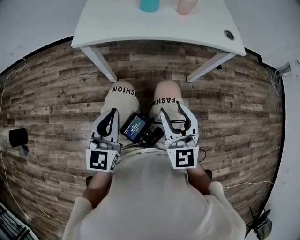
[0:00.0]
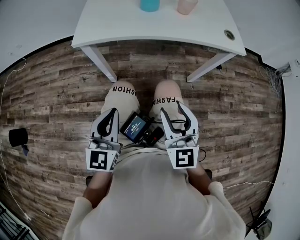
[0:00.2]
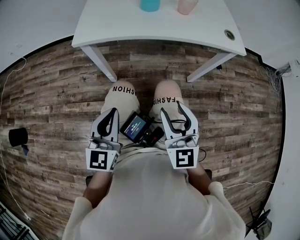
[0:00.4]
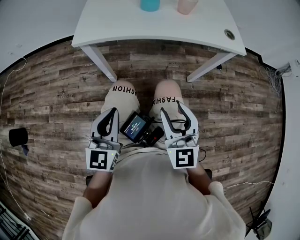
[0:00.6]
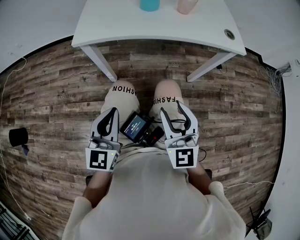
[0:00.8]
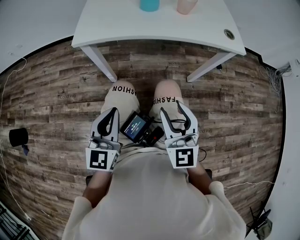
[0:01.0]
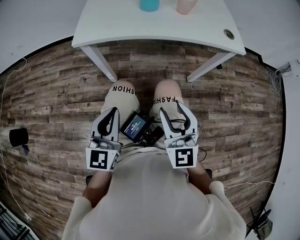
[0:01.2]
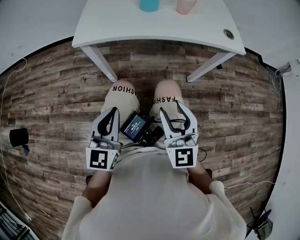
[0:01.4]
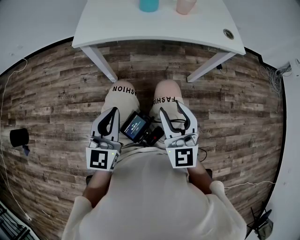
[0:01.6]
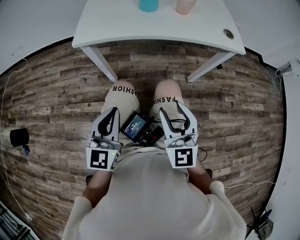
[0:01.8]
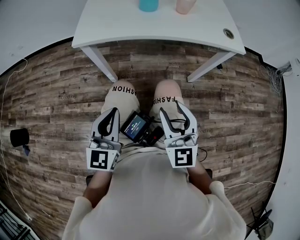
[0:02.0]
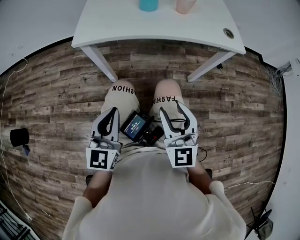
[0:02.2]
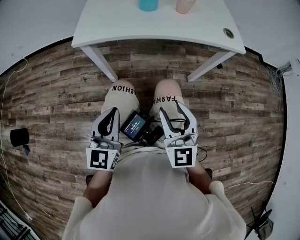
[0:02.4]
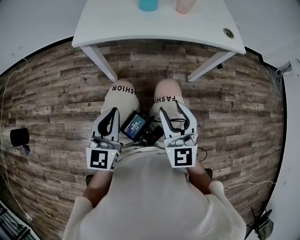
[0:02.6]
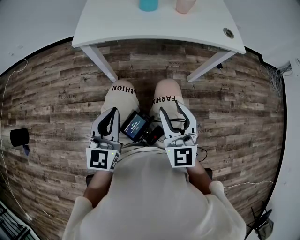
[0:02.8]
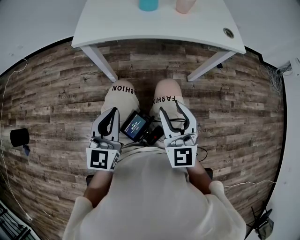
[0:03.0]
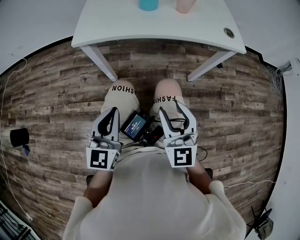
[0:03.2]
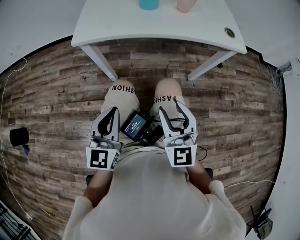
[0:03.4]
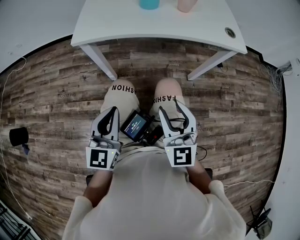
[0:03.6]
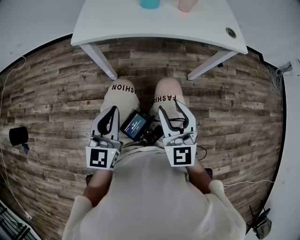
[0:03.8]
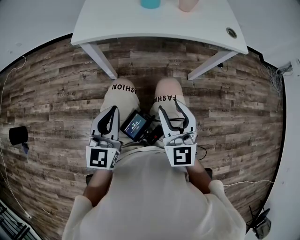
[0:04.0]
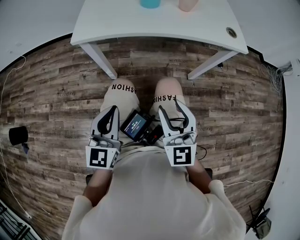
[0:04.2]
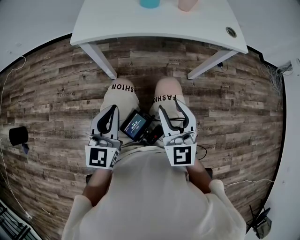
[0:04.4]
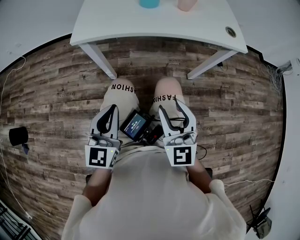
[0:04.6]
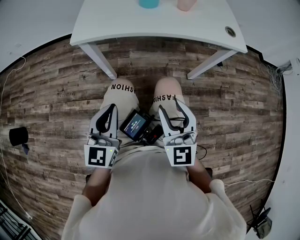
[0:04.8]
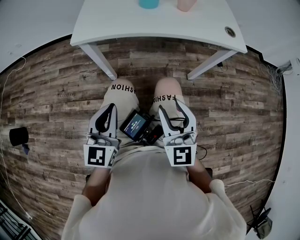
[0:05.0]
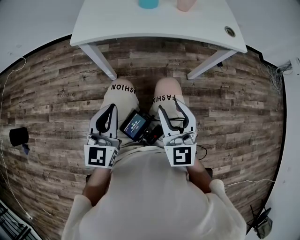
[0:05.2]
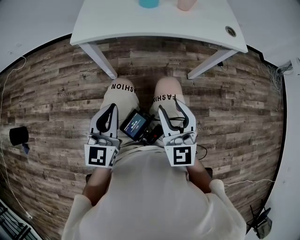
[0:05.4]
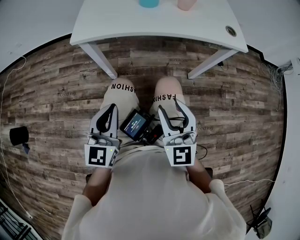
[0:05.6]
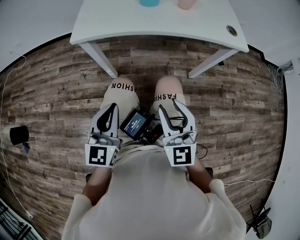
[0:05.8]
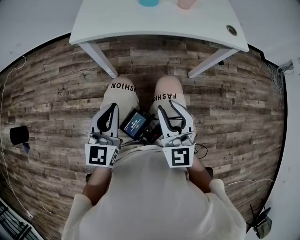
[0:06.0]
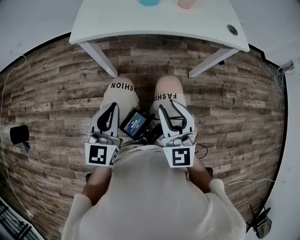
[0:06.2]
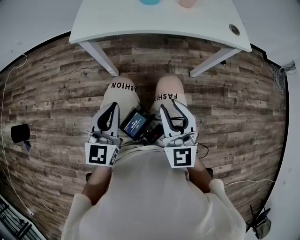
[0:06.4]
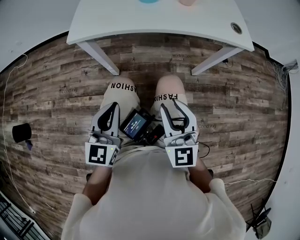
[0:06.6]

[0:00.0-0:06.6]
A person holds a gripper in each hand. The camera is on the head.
0.0 to 3.2 s: Both grippers stay about where they are.
3.2 to 5.0 s: Both grippers stay put.
5.0 to 6.6 s: There are only small adjustments of the grippers.

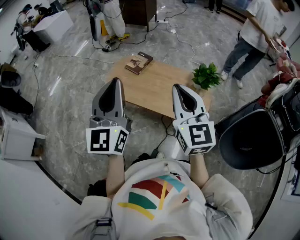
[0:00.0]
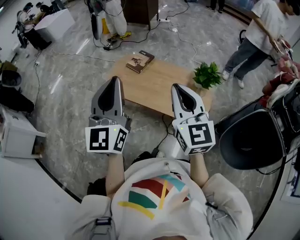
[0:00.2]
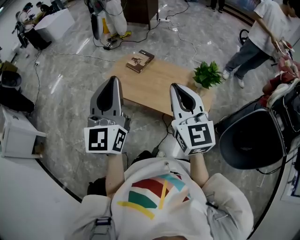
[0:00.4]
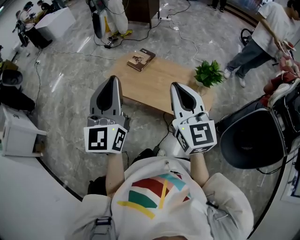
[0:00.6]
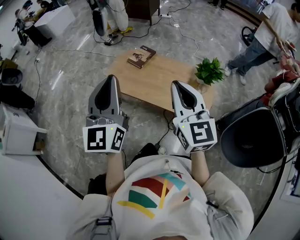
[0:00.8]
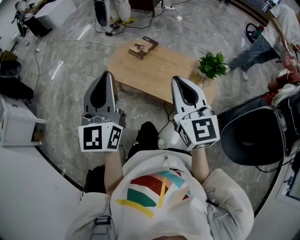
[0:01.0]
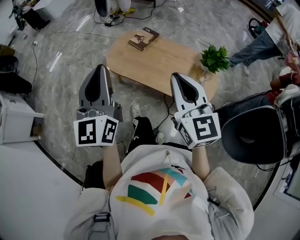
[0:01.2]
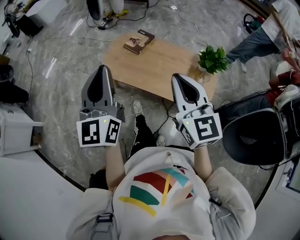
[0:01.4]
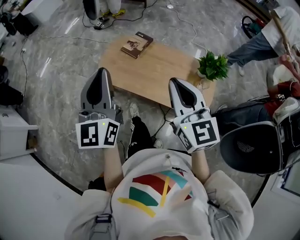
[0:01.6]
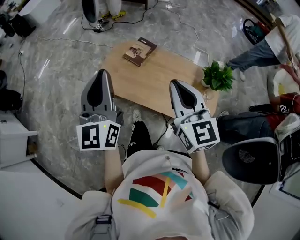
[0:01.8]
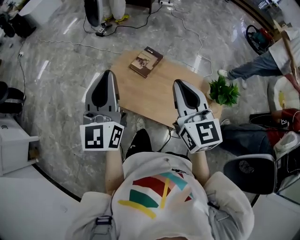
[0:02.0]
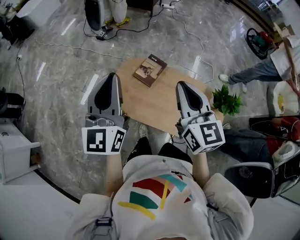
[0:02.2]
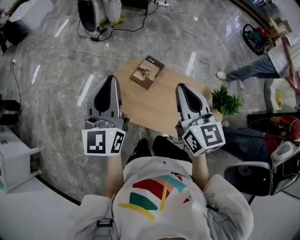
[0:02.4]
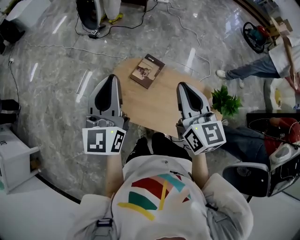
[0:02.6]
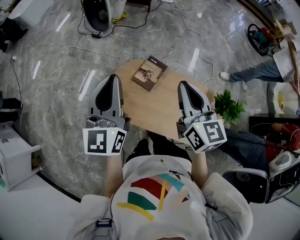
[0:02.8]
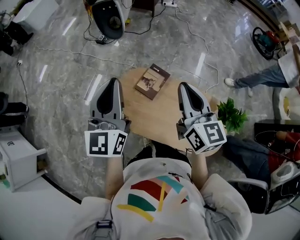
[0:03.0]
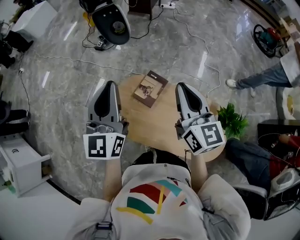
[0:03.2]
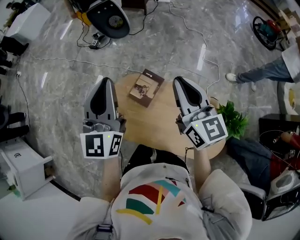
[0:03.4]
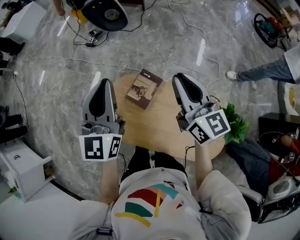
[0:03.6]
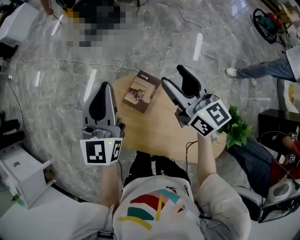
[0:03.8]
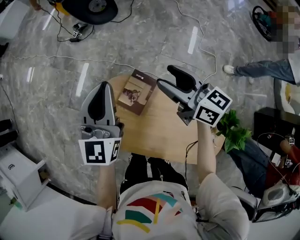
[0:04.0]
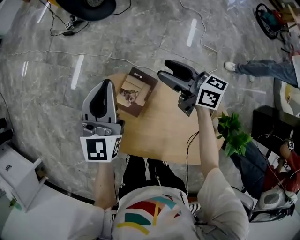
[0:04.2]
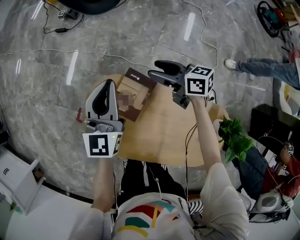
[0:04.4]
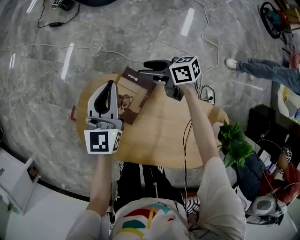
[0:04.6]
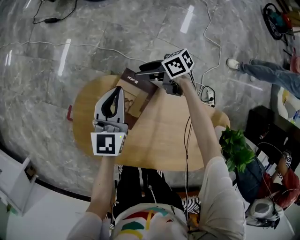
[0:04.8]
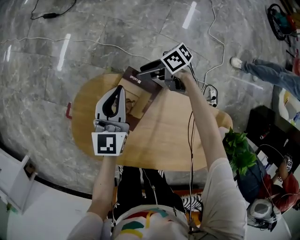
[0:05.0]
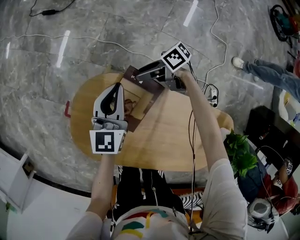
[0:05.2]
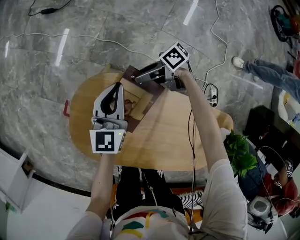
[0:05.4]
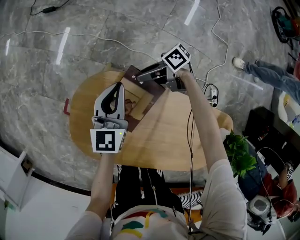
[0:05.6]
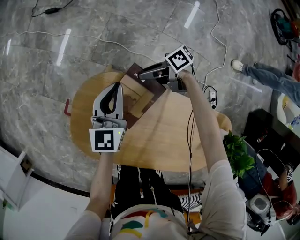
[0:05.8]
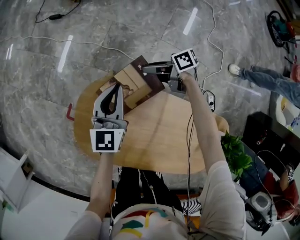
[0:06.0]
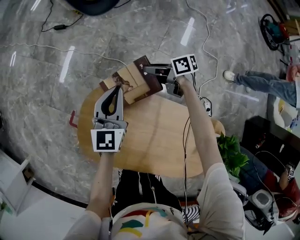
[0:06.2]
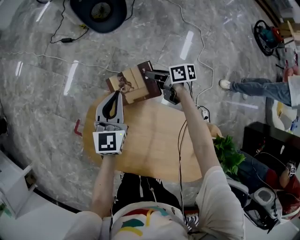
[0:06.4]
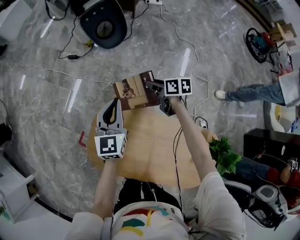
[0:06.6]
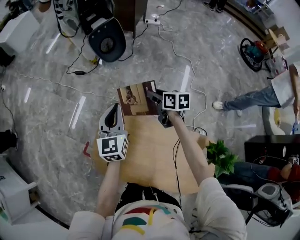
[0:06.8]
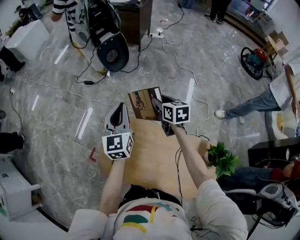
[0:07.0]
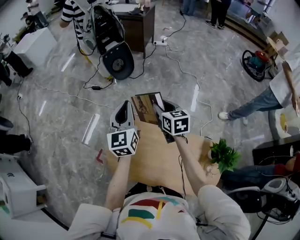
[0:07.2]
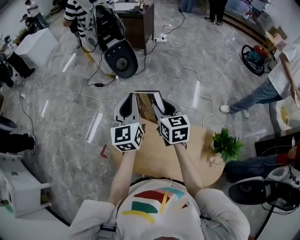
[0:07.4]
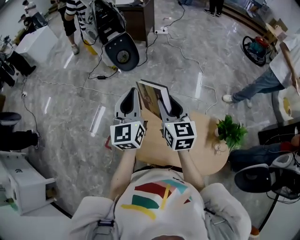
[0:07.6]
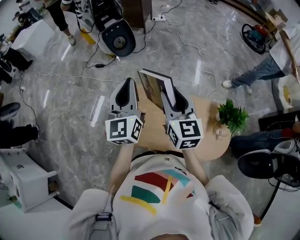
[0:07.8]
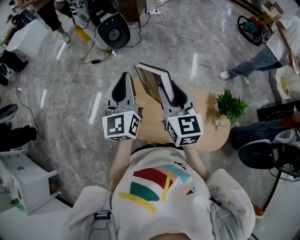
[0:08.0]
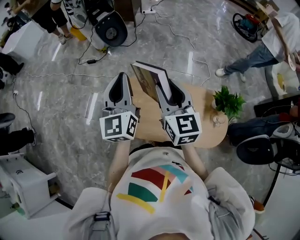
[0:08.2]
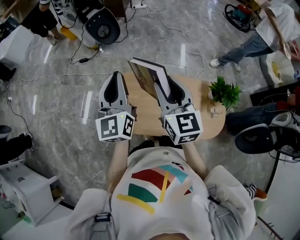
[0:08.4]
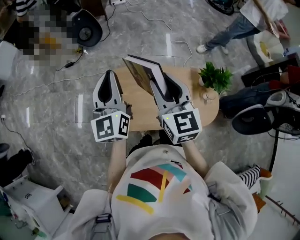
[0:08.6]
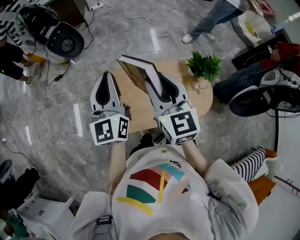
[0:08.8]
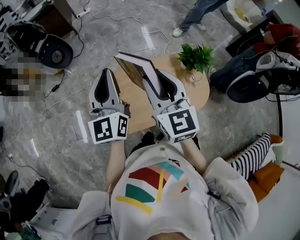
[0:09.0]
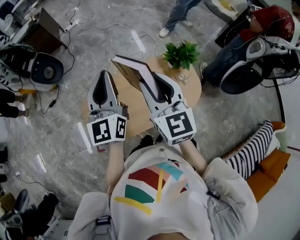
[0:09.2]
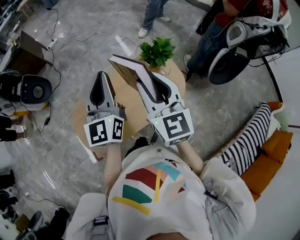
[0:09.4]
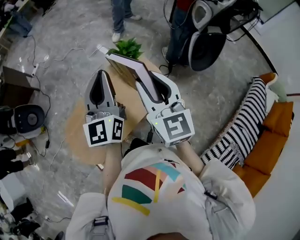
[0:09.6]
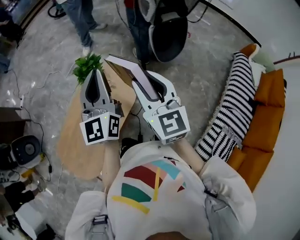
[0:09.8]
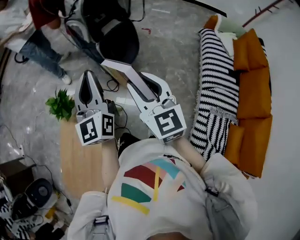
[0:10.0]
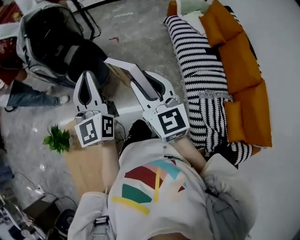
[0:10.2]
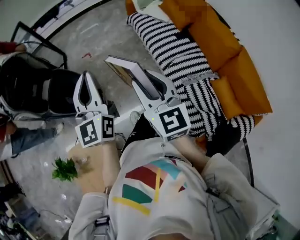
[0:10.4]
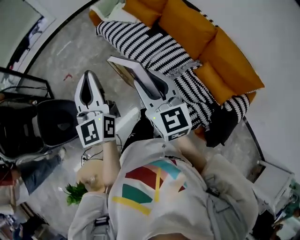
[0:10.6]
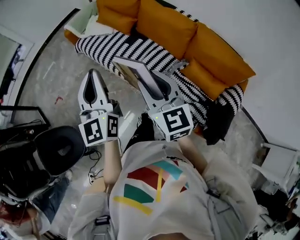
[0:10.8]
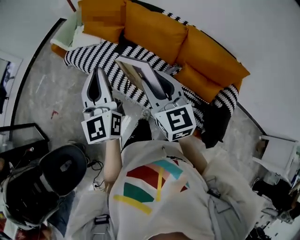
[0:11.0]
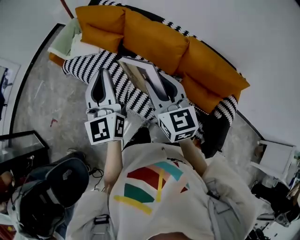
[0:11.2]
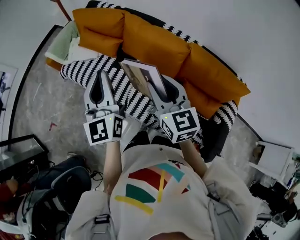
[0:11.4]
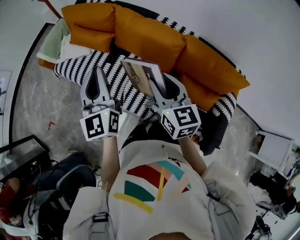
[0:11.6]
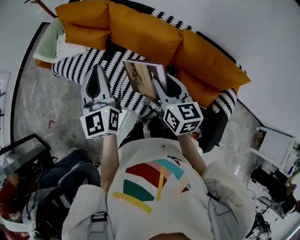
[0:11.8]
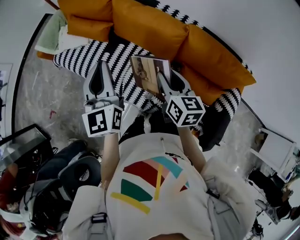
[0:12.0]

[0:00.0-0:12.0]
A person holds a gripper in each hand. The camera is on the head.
0.0 to 1.6 s: The left gripper travels forward, downward and to the left by approximately 15 cm; the right gripper heads forward and downward, covering approximately 10 cm.
1.6 to 3.0 s: The grippers both shift forward by about 35 cm.
3.0 to 4.4 s: The right gripper travels downward and forward by roughly 50 cm, swivels roughly 50 degrees, and opens, while the left gripper goes about 40 cm downward, forward and to the right.
4.4 to 6.0 s: Both grippers travel together downward, some 20 cm. The right gripper turns by approximately 40 degrees, and closes its fingers.
6.0 to 7.6 s: Both grippers move upward, approximately 50 cm. The left gripper turns by some 20 degrees, while the right gripper changes its angle by approximately 90 degrees.
7.6 to 9.0 s: The right gripper moves backward and to the right, about 15 cm, and changes its angle by approximately 20 degrees, while the left gripper goes approximately 15 cm to the right and backward, and turns by some 30 degrees.
9.0 to 10.4 s: Both grippers are carried some 90 cm. The left gripper changes its angle by approximately 90 degrees. The right gripper rotates about 100 degrees.
10.4 to 12.0 s: The two grippers travel together, roughly 50 cm. The right gripper changes its angle by some 60 degrees, while the left gripper changes its angle by approximately 50 degrees.

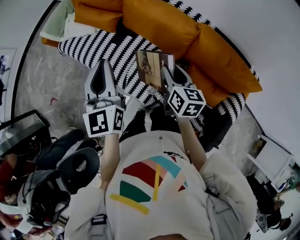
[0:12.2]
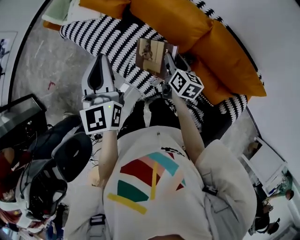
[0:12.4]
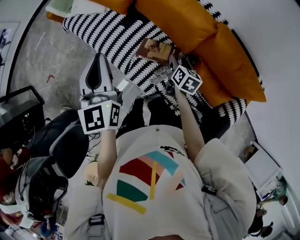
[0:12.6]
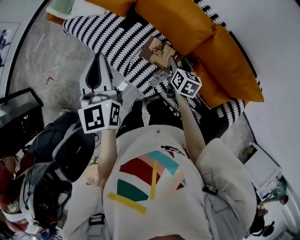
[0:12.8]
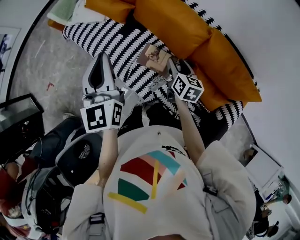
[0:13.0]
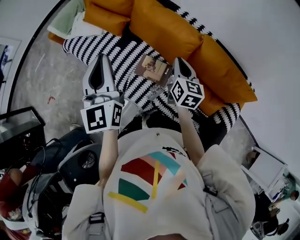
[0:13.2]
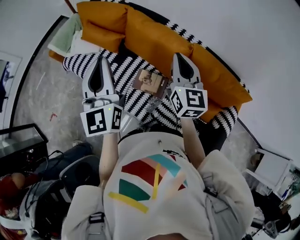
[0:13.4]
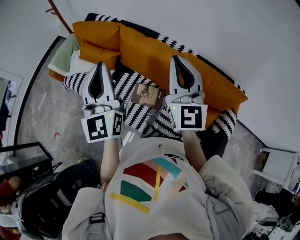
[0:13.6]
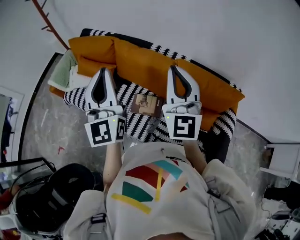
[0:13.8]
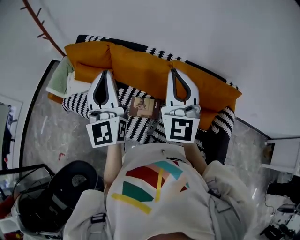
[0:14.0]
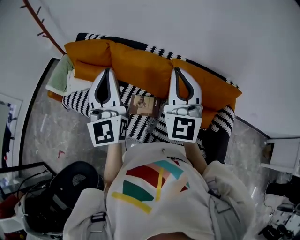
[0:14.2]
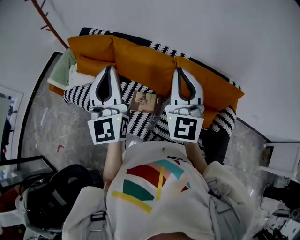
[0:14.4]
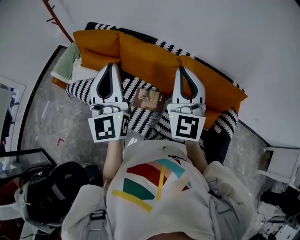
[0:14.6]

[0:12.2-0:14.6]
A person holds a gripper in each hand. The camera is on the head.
12.2 to 13.4 s: The left gripper travels upward by approximately 10 cm. The right gripper goes some 15 cm upward, changes its angle by about 30 degrees, and closes.
13.4 to 14.6 s: The right gripper heads upward and backward, covering roughly 15 cm, and swivels some 30 degrees, while the left gripper heads upward and to the right, covering approximately 10 cm.

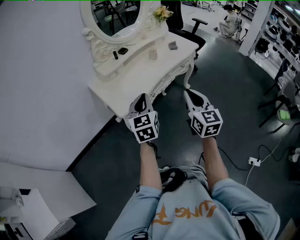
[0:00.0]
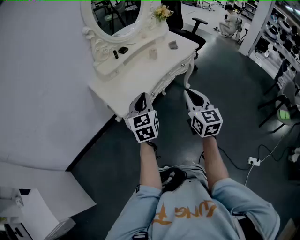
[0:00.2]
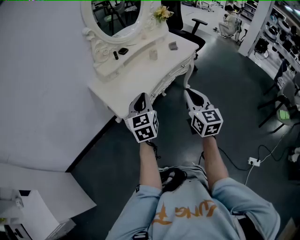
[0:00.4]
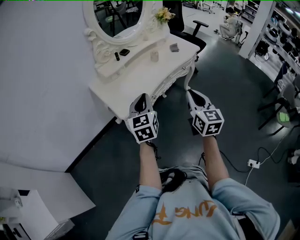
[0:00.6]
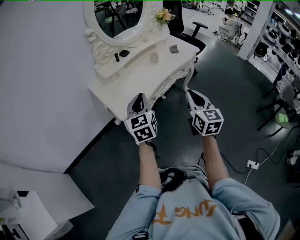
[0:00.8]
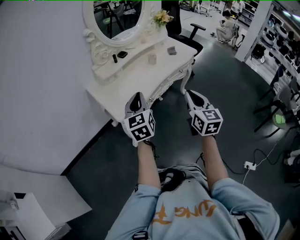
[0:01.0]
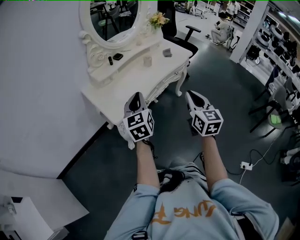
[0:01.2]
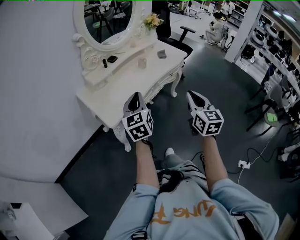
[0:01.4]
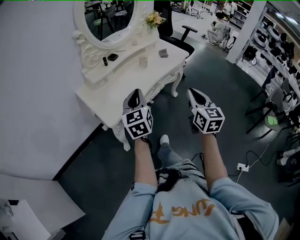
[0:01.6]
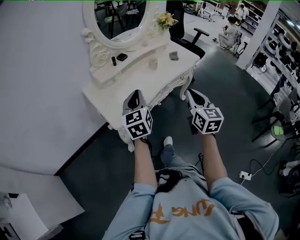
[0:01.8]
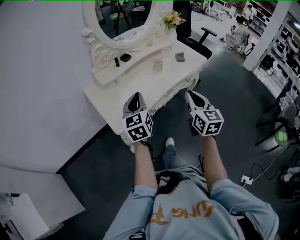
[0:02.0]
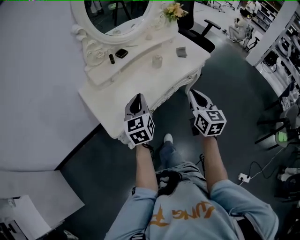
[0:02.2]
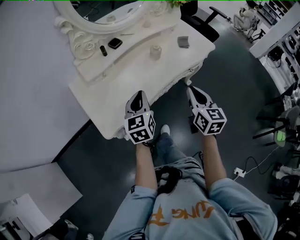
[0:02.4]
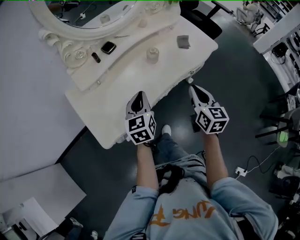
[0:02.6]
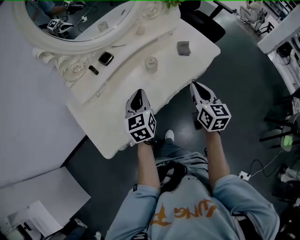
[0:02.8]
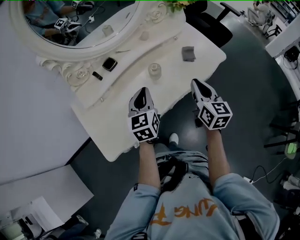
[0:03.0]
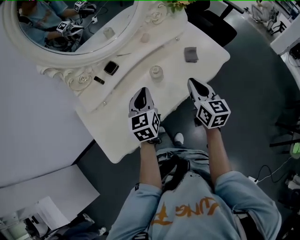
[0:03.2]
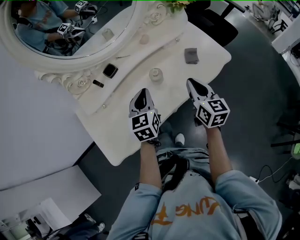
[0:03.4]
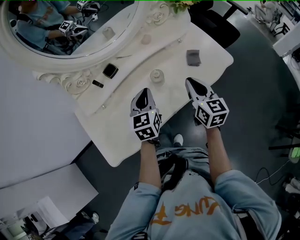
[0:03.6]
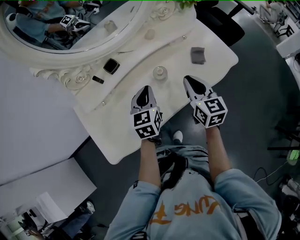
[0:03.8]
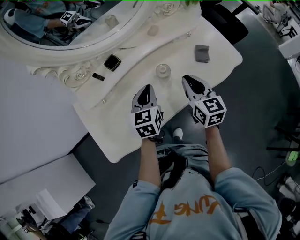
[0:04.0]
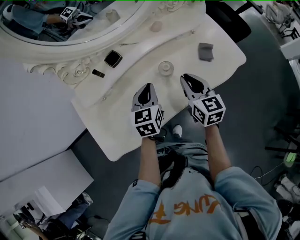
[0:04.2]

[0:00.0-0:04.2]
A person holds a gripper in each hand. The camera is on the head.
0.0 to 1.4 s: The right gripper shifts by about 5 cm, while the left gripper travels forward by approximately 5 cm.
1.4 to 2.8 s: The left gripper heads forward and downward, covering roughly 35 cm, while the right gripper heads forward, covering approximately 35 cm.
2.8 to 4.2 s: The left gripper is displaced forward by roughly 10 cm. Meanwhile the right gripper moves forward and to the left, roughly 15 cm.
